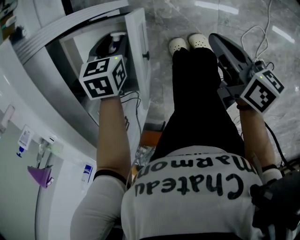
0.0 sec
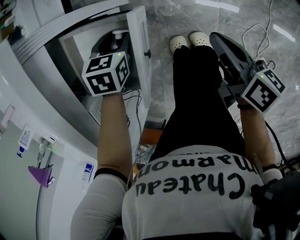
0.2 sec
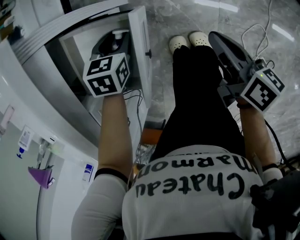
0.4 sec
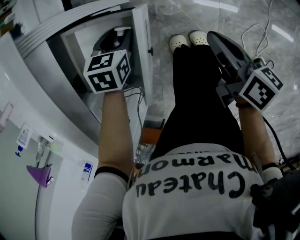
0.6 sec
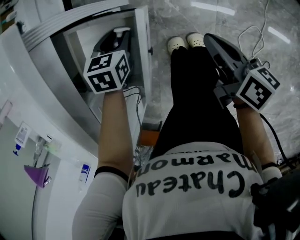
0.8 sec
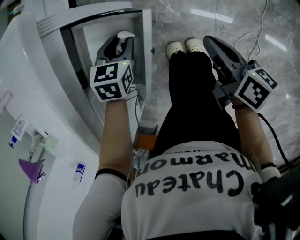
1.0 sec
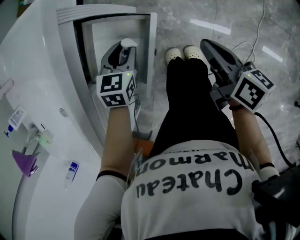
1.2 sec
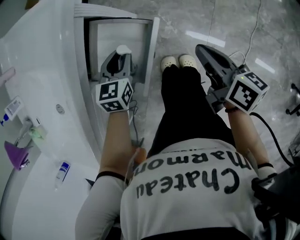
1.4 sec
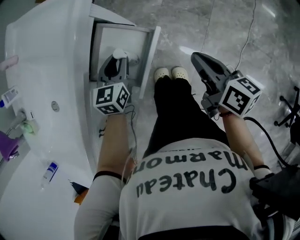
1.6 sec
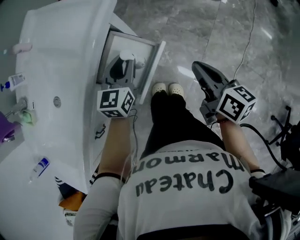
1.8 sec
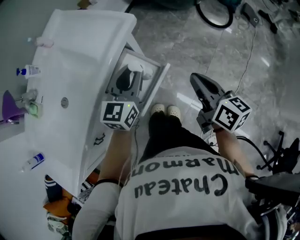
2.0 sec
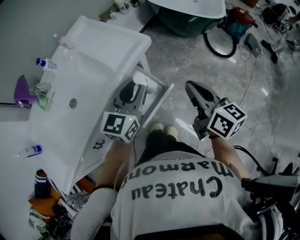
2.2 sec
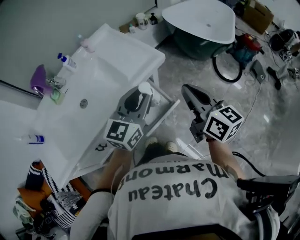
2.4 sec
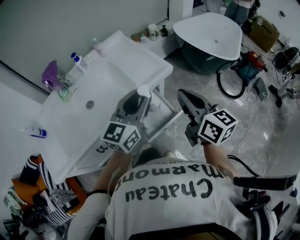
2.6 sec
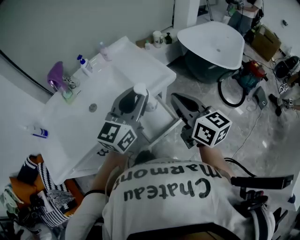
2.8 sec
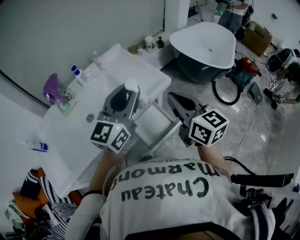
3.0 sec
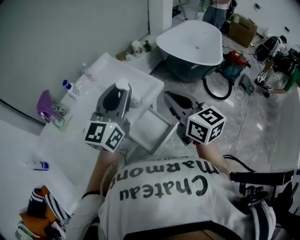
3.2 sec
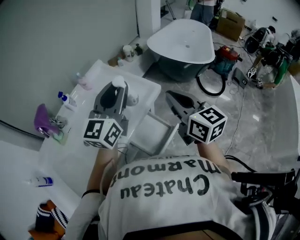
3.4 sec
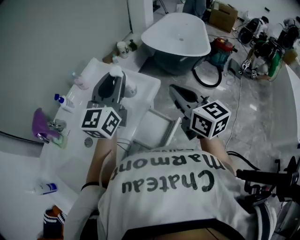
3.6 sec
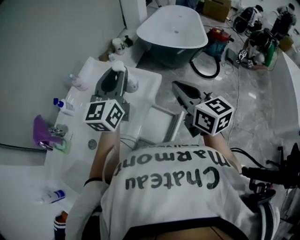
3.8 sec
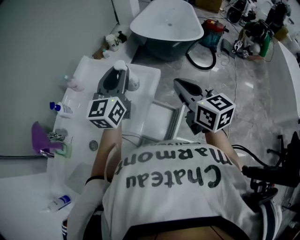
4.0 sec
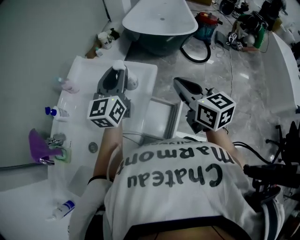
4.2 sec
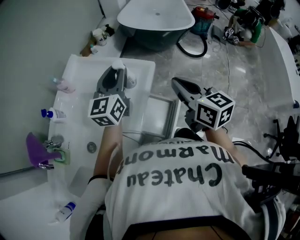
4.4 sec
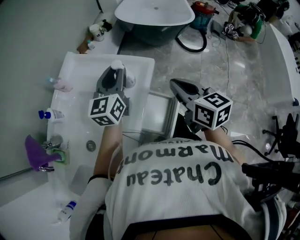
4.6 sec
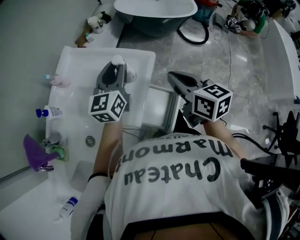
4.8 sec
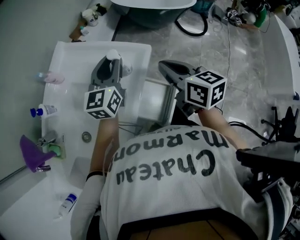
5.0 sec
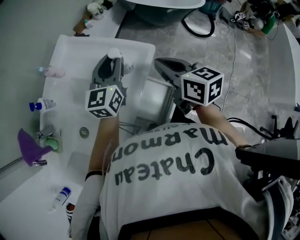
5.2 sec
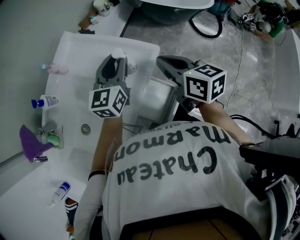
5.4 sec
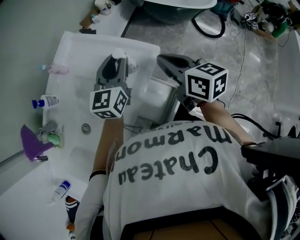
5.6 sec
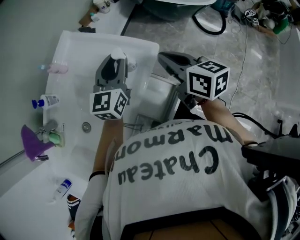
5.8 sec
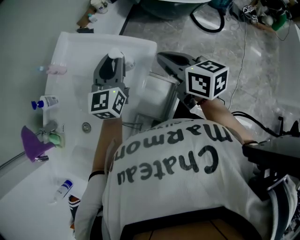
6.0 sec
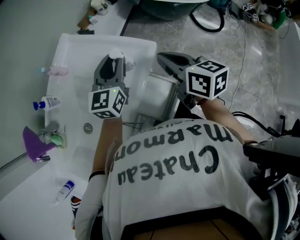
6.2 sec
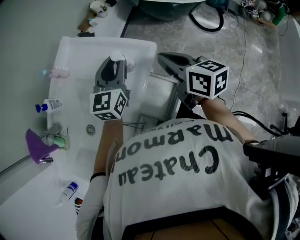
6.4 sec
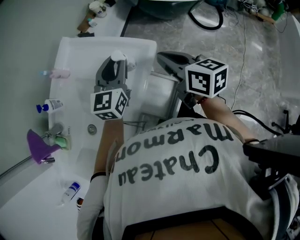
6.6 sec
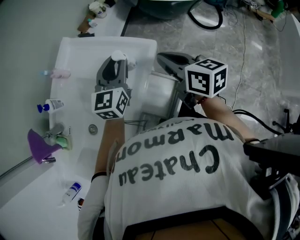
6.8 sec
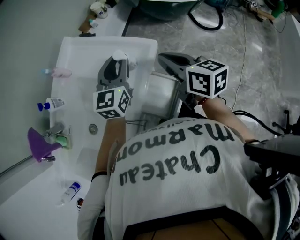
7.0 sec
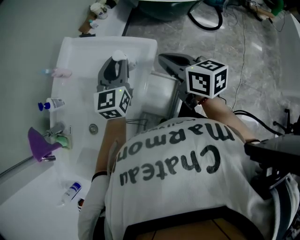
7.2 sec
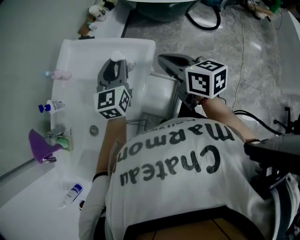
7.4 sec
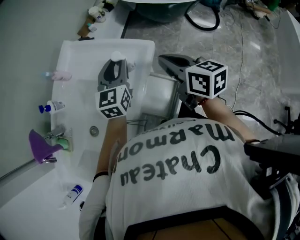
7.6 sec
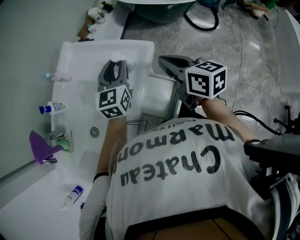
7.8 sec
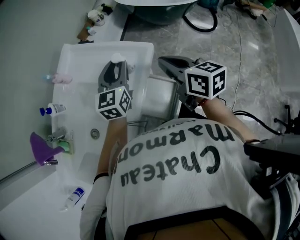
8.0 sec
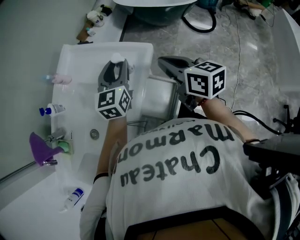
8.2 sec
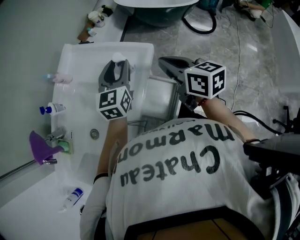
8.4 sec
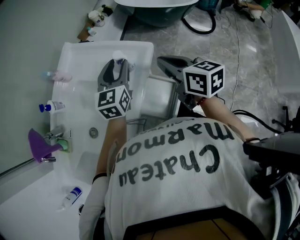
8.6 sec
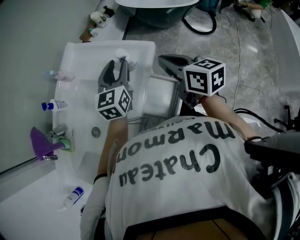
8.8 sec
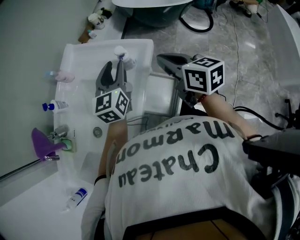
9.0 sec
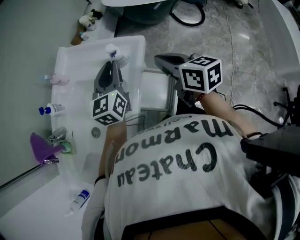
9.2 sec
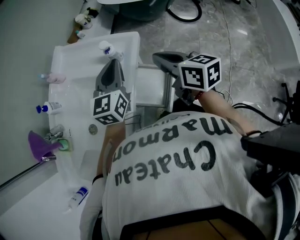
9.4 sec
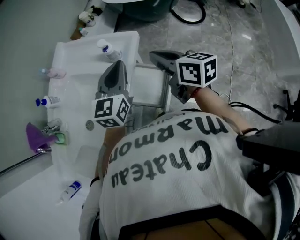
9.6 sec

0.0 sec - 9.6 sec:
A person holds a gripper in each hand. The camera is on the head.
0.0 sec - 1.6 sec: The grippers both shift upward by roughly 15 cm. The left gripper tilts its fingers approximately 40 degrees upward. The right gripper rotates about 20 degrees.
1.6 sec - 3.2 sec: The right gripper moves upward and to the left, about 35 cm, and rotates around the line of its fingers by approximately 40 degrees, counterclockwise from behind; the left gripper is displaced upward by about 50 cm, and angles its fingers upward, by approximately 40 degrees.
3.2 sec - 4.8 sec: The right gripper heads downward and forward, covering about 10 cm, and changes its angle by approximately 30 degrees. The left gripper is displaced forward and downward by about 20 cm, and changes its angle by about 20 degrees.
4.8 sec - 6.4 sec: The right gripper shifts about 5 cm forward.
6.4 sec - 8.0 sec: The grippers move only a little.
8.0 sec - 9.6 sec: The left gripper goes roughly 10 cm backward, and closes, while the right gripper shifts about 5 cm backward.

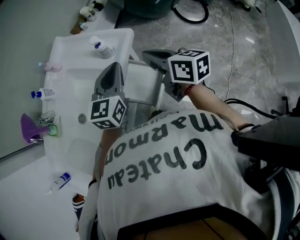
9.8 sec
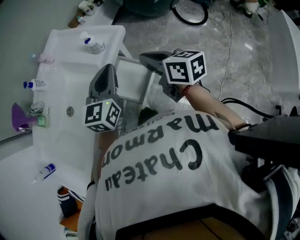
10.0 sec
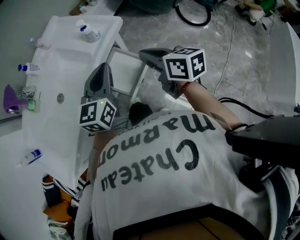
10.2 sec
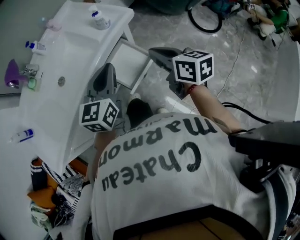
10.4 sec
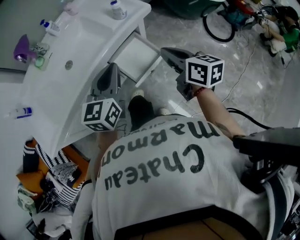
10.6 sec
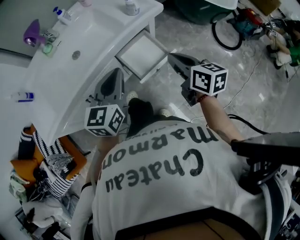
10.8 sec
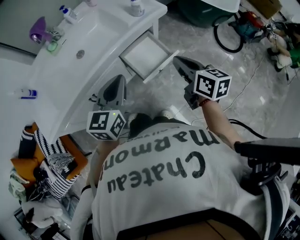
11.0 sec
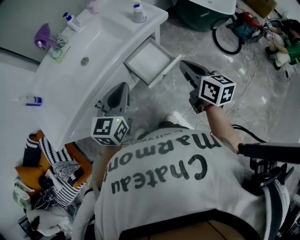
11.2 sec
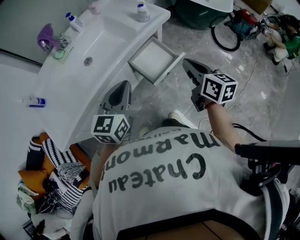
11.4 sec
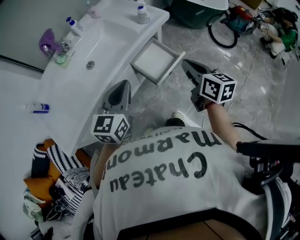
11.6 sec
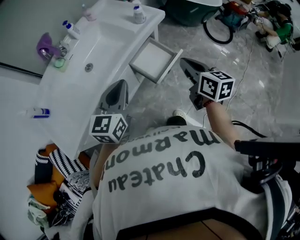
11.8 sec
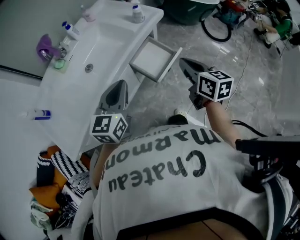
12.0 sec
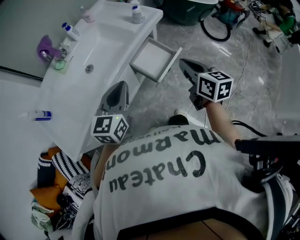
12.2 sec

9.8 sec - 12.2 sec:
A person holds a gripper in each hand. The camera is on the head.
9.8 sec - 11.0 sec: The left gripper goes some 25 cm backward, and swivels roughly 30 degrees; the right gripper goes roughly 15 cm backward.
11.0 sec - 12.2 sec: The right gripper is displaced backward and to the left by about 5 cm; the left gripper heads to the left, covering about 10 cm.

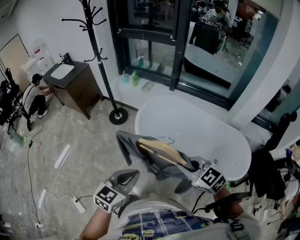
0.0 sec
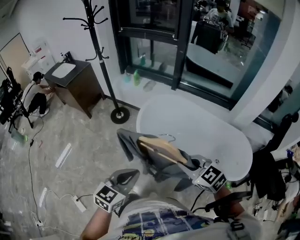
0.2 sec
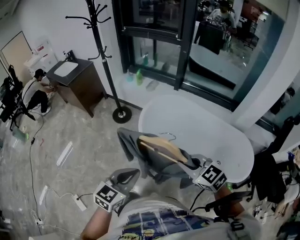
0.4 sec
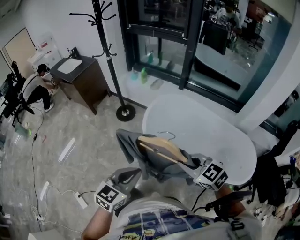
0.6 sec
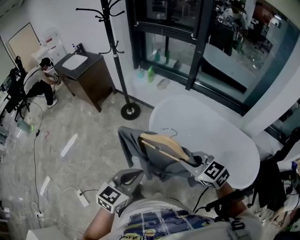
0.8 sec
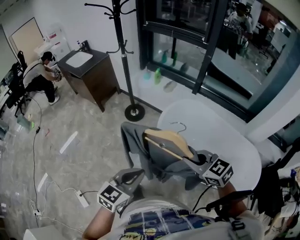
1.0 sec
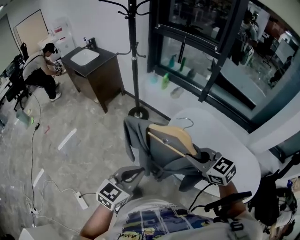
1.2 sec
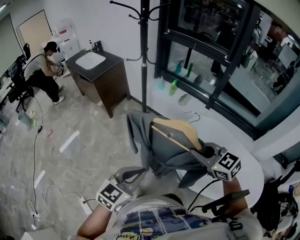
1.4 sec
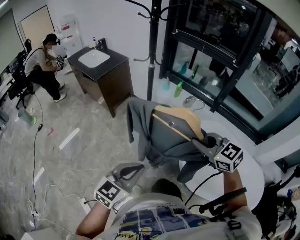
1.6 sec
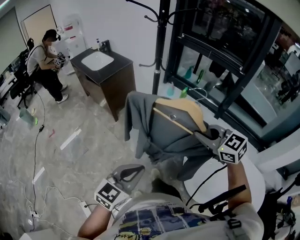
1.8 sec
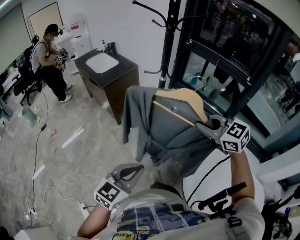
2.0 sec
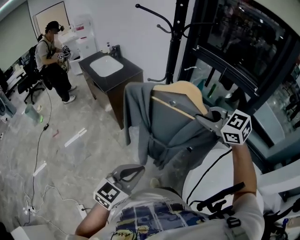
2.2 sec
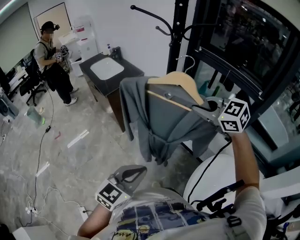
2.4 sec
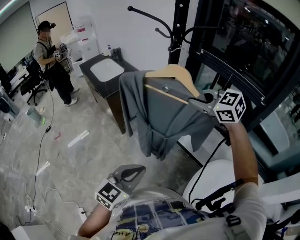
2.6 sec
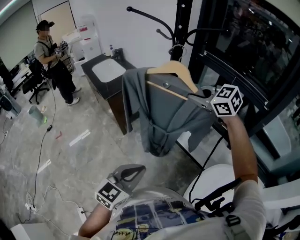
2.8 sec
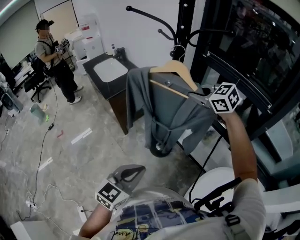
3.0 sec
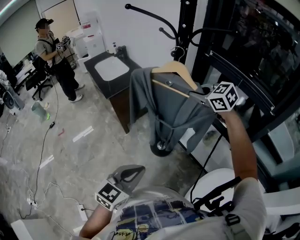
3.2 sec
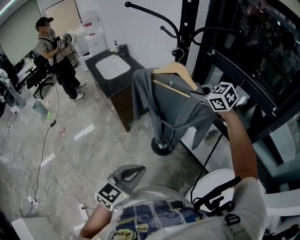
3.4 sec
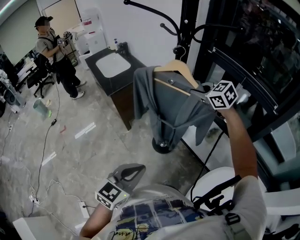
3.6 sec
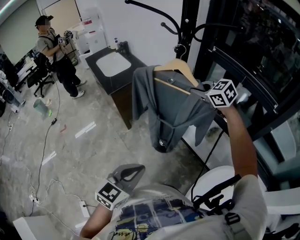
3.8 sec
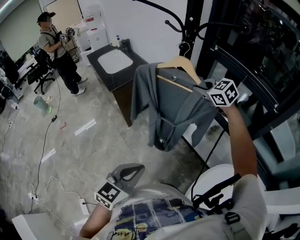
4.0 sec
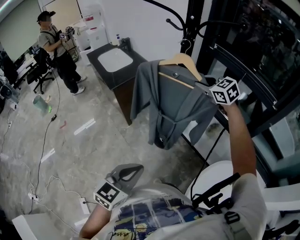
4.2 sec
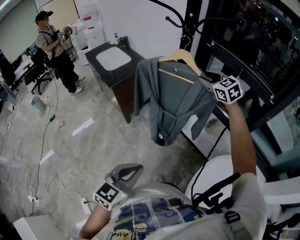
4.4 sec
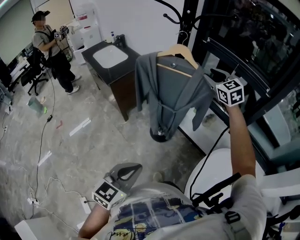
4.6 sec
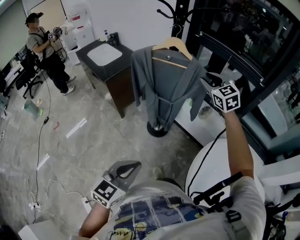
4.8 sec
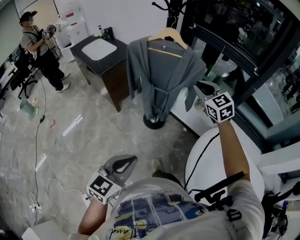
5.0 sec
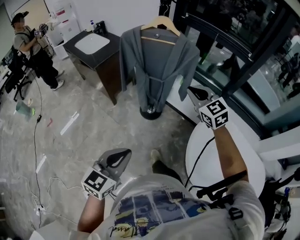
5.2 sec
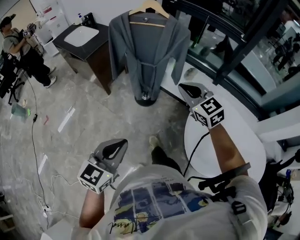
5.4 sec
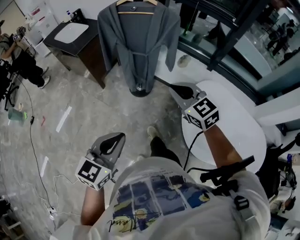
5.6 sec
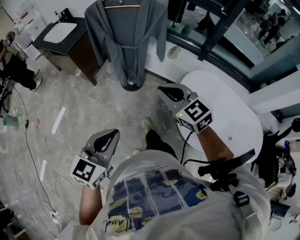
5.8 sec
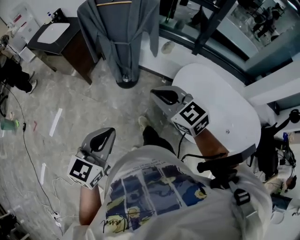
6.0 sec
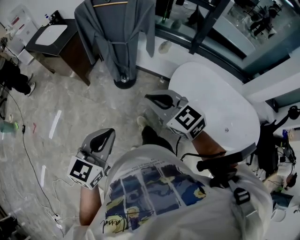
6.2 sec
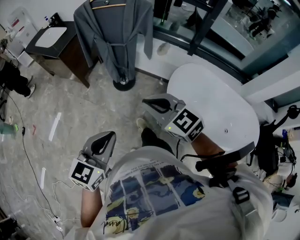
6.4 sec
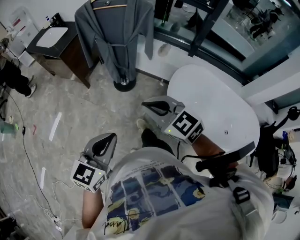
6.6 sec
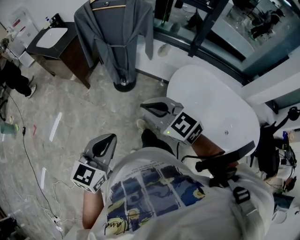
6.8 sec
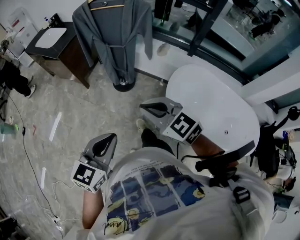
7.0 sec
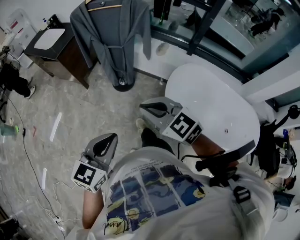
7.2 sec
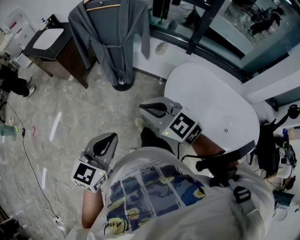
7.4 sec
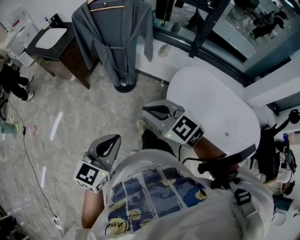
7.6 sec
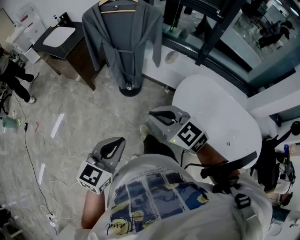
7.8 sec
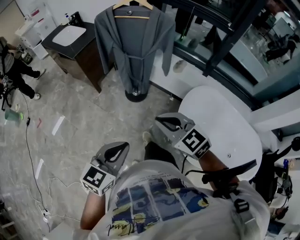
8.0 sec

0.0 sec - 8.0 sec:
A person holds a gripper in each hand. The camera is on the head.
0.0 sec - 1.6 sec: The left gripper goes some 35 cm to the left and forward. Meanwhile the right gripper shifts some 40 cm forward and to the left.
1.6 sec - 3.2 sec: The right gripper moves forward, approximately 50 cm. The left gripper is displaced forward by some 30 cm.
3.2 sec - 4.8 sec: The left gripper is displaced backward and to the left by approximately 15 cm, while the right gripper shifts roughly 10 cm backward and to the right, swivels about 30 degrees, and opens.
4.8 sec - 6.4 sec: The right gripper moves backward, about 40 cm, and closes its fingers; the left gripper is displaced backward by approximately 15 cm.
6.4 sec - 8.0 sec: The grippers move only a little.

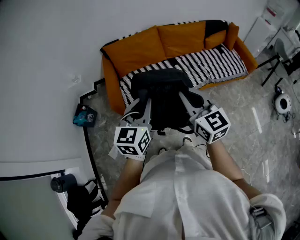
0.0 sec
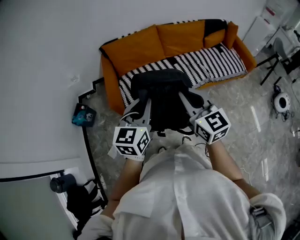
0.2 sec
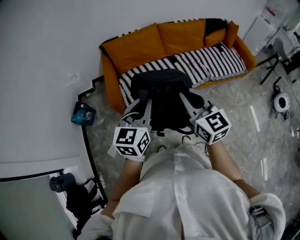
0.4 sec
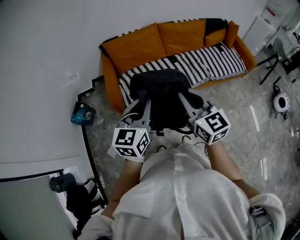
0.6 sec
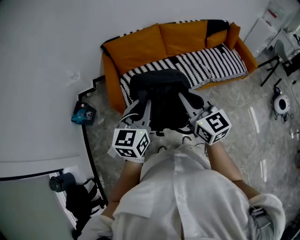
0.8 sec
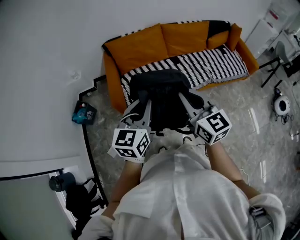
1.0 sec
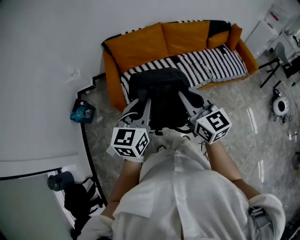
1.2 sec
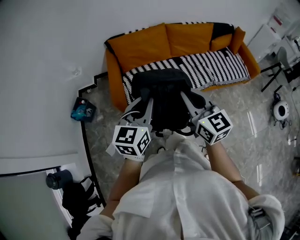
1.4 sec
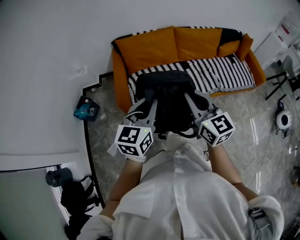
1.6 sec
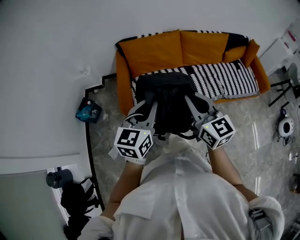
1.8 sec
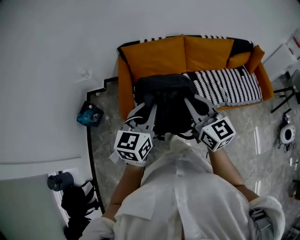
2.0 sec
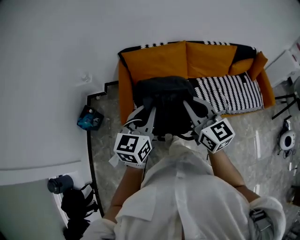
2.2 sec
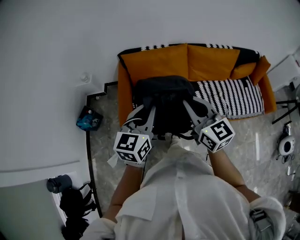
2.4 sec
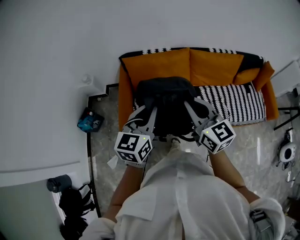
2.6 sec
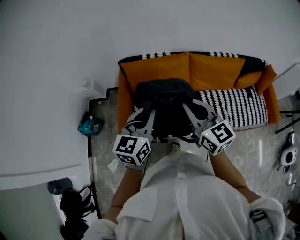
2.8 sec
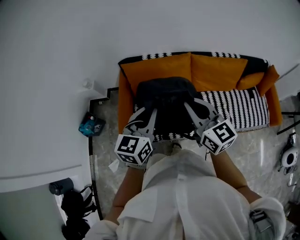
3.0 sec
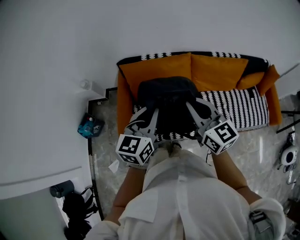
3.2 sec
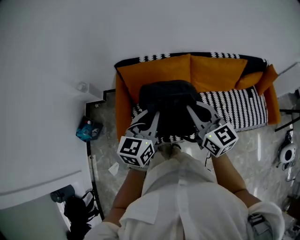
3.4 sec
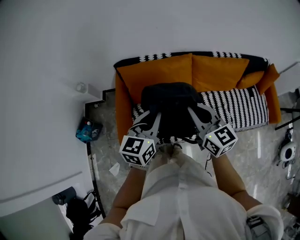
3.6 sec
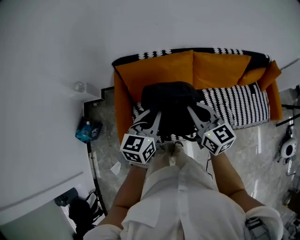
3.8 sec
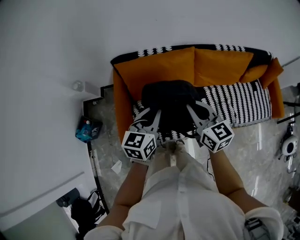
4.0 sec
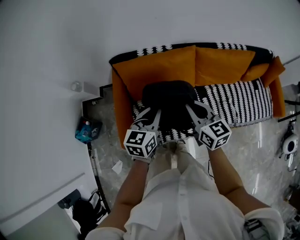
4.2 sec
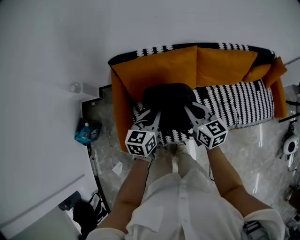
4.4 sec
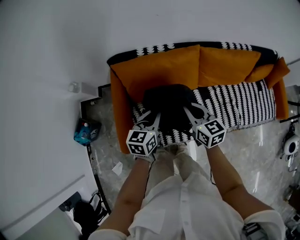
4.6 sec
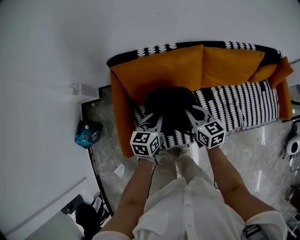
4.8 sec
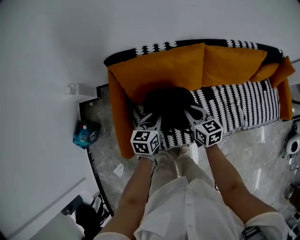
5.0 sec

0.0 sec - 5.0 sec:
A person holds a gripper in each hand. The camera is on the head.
0.0 sec - 1.6 sec: Both grippers move to the left, roughly 5 cm.
1.6 sec - 3.4 sec: Both grippers travel together forward, roughly 35 cm.
3.4 sec - 5.0 sec: The left gripper travels downward and forward by about 30 cm, and changes its angle by roughly 20 degrees. The right gripper is displaced downward by about 30 cm, and swivels about 30 degrees.
